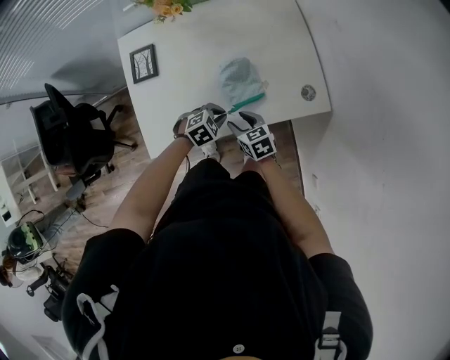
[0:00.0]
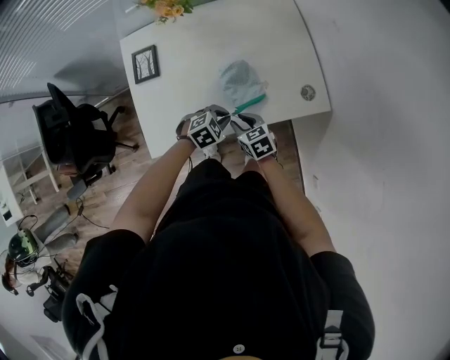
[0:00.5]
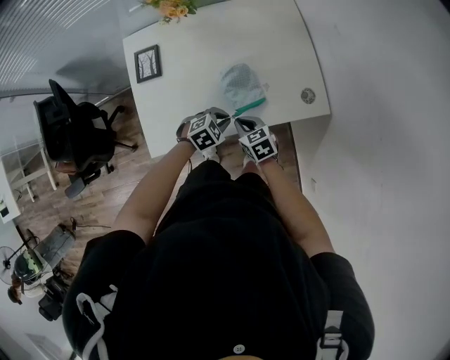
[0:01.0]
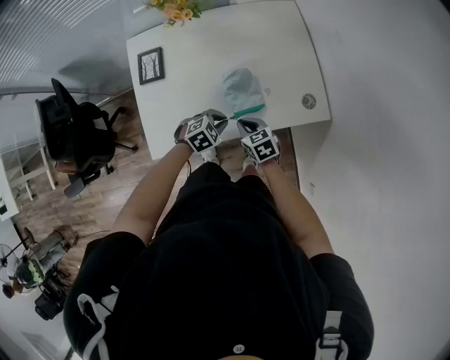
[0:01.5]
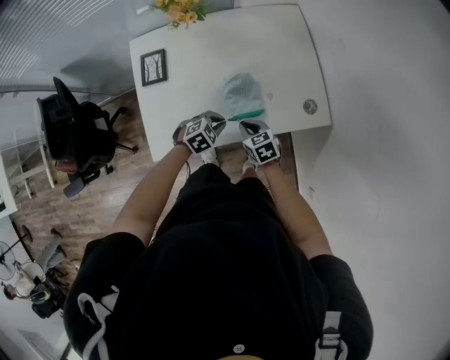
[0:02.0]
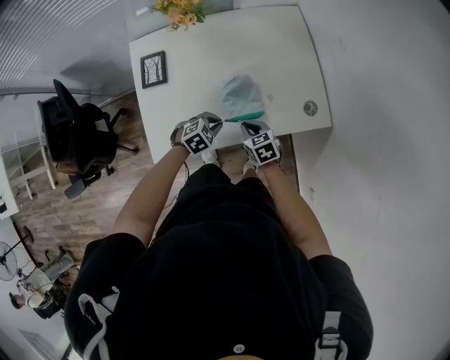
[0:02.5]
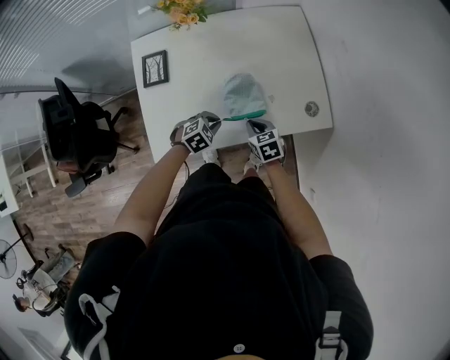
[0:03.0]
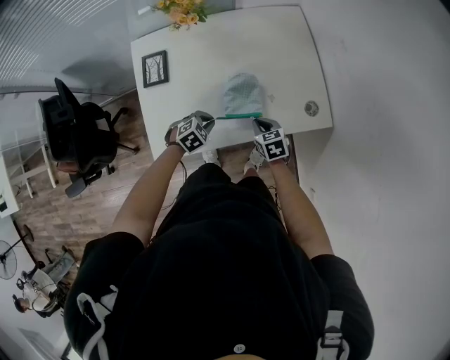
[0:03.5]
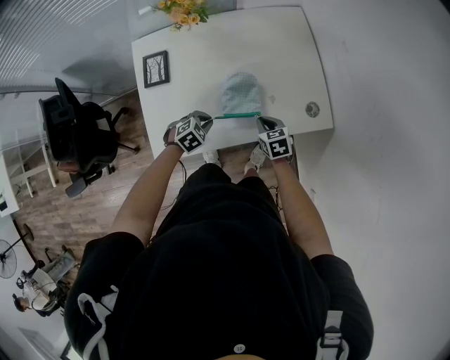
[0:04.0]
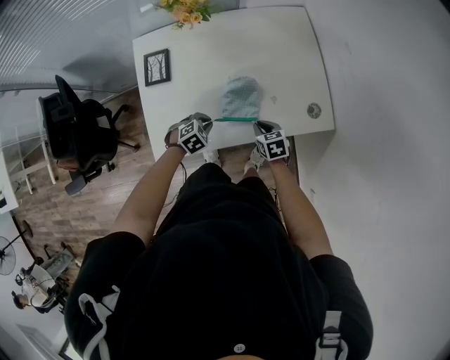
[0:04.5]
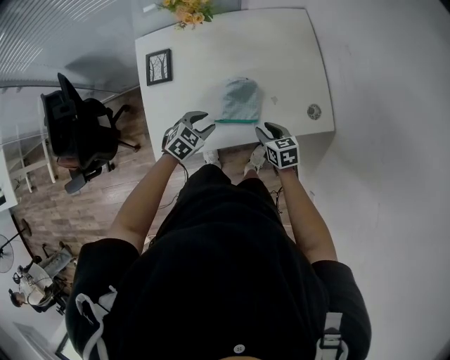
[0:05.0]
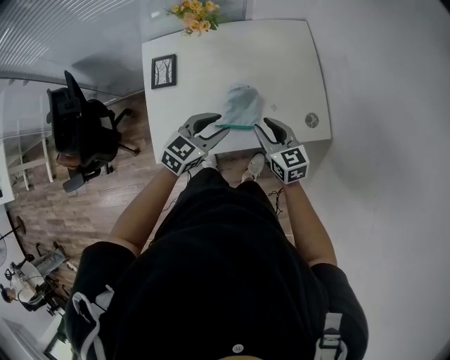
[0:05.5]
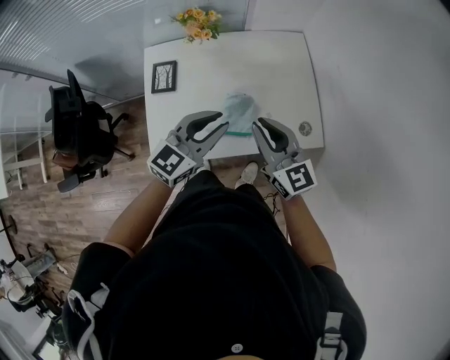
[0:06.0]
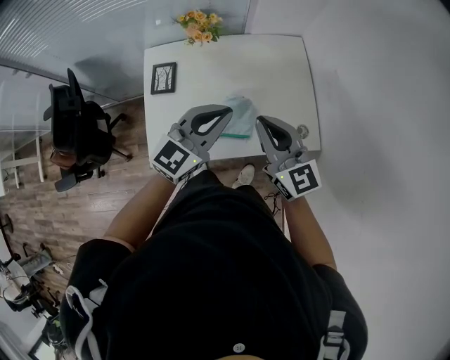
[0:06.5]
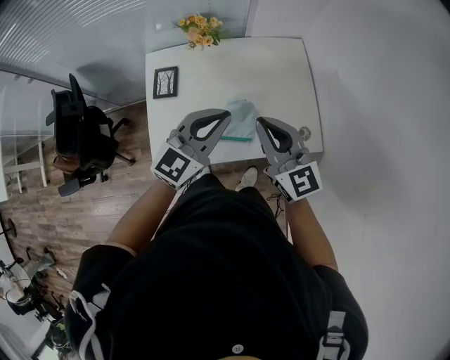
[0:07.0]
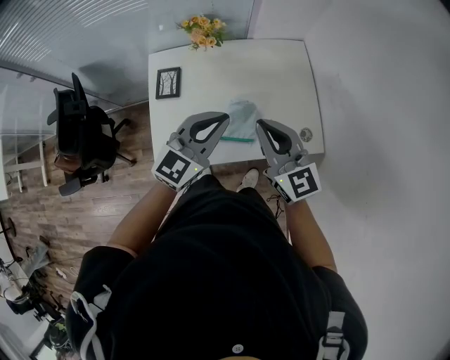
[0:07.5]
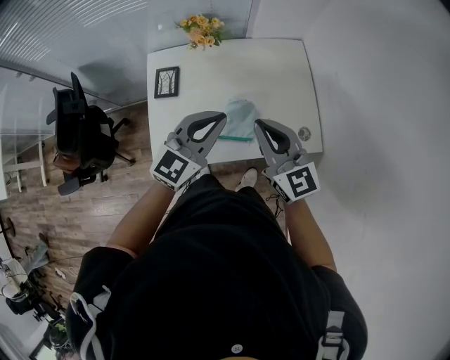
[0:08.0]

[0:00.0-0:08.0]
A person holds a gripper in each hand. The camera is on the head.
0:00.0 to 0:02.0: The right gripper closes.
0:02.0 to 0:04.0: The left gripper shifts about 5 cm to the left. The right gripper is displaced to the right by some 5 cm.
0:04.0 to 0:06.0: The two grippers go roughly 30 cm upward. The left gripper angles its fingers upward, by roughly 50 degrees. Meanwhile the right gripper angles its fingers upward, by some 50 degrees.
0:06.0 to 0:08.0: The grippers move only a little.

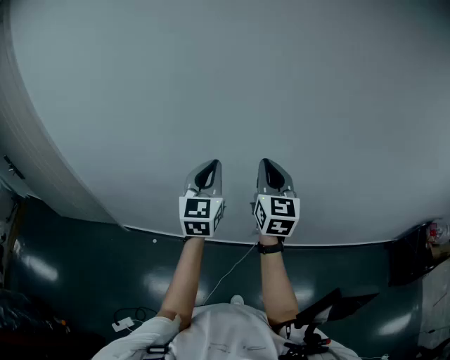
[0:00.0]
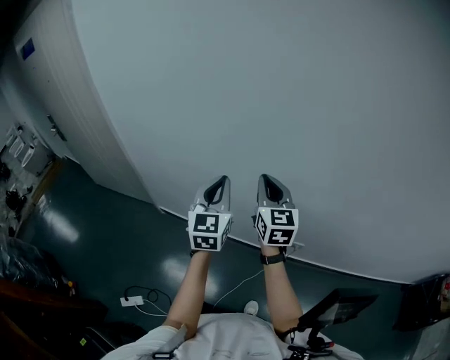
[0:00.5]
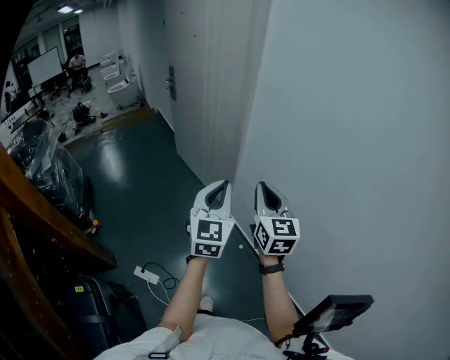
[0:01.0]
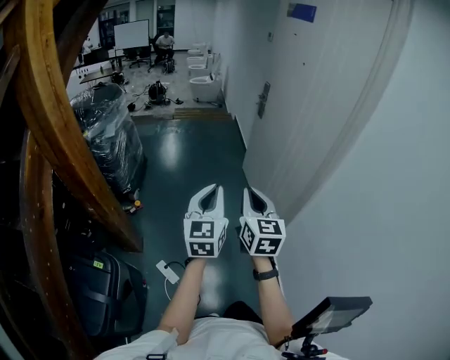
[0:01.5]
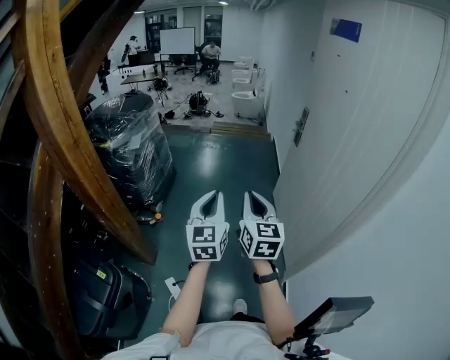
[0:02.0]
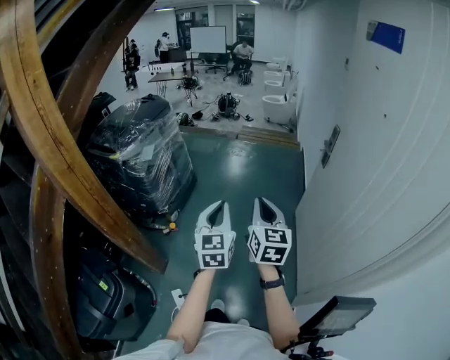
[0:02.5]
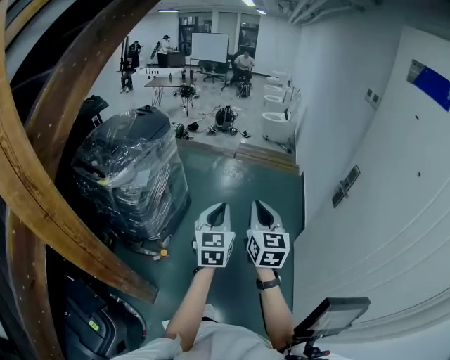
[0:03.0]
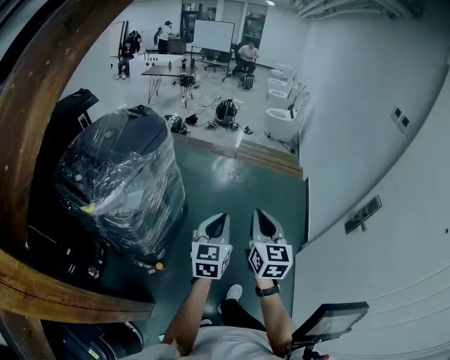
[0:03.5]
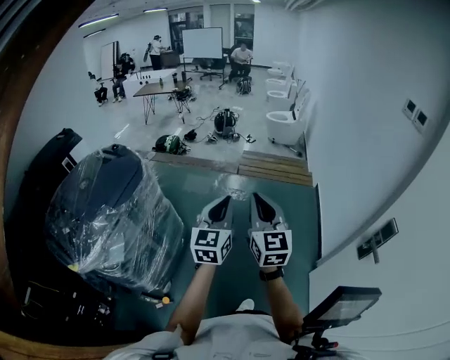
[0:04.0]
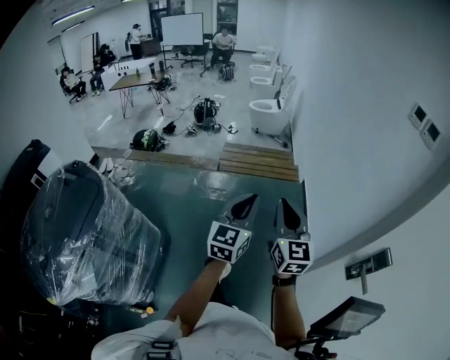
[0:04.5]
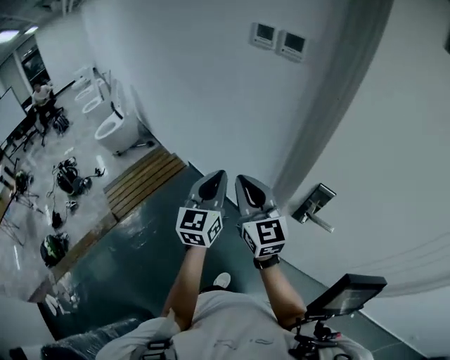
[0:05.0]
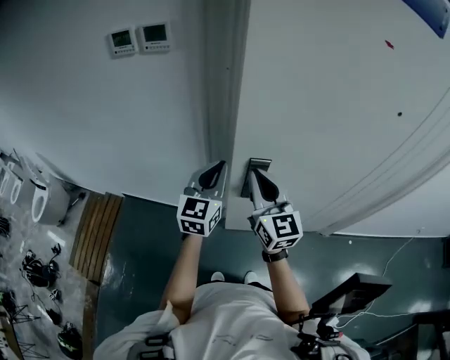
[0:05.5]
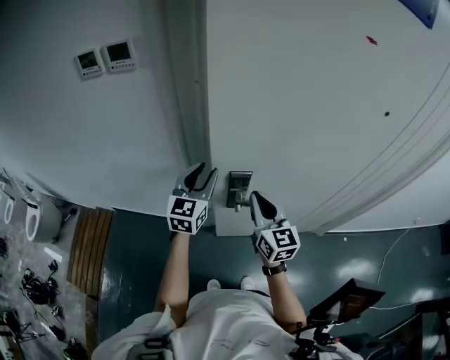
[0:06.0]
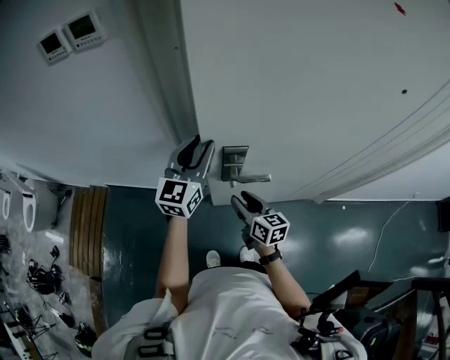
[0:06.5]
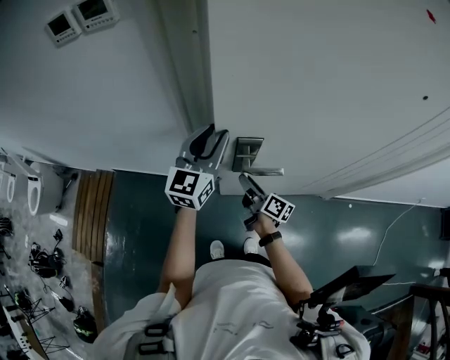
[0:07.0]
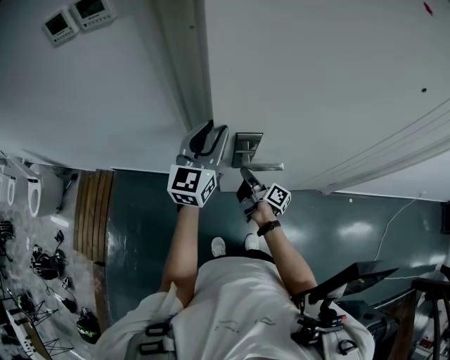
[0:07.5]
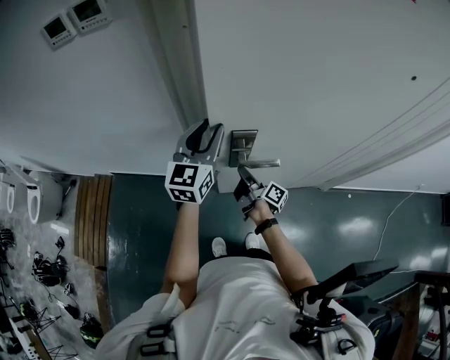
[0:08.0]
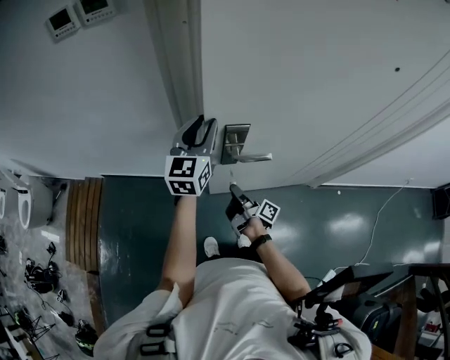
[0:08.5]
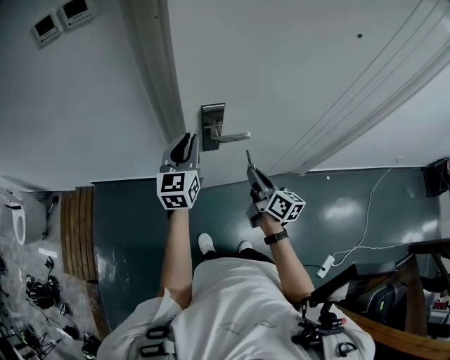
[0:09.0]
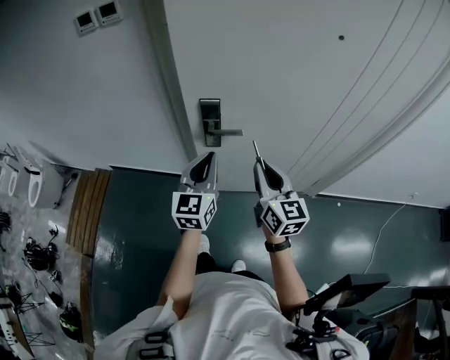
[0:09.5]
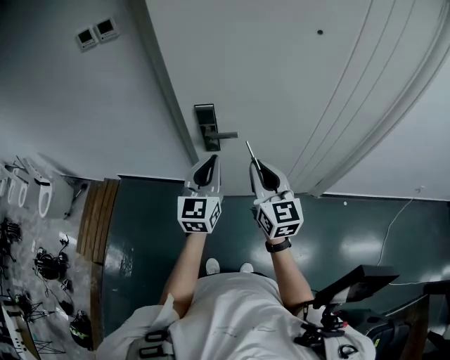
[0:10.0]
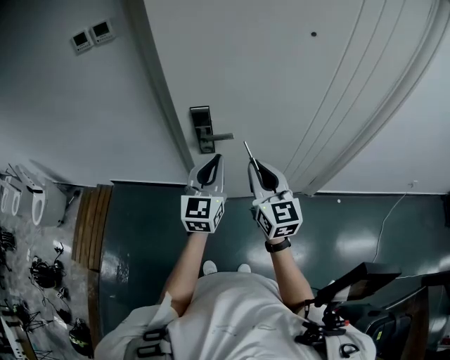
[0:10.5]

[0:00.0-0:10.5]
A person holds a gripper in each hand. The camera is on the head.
0:00.0 to 0:02.0: The pair of grippers is taken roughly 1 m. The right gripper changes its angle by some 90 degrees. Meanwhile the left gripper rotates some 90 degrees.
0:02.0 to 0:04.0: The two grippers travel together, forward, about 70 cm.
0:04.0 to 0:06.5: The pair of grippers is taken approximately 60 cm. The right gripper rotates roughly 90 degrees, and opens; the left gripper turns by approximately 100 degrees, and opens up.
0:06.5 to 0:08.5: The right gripper moves downward, some 10 cm, rotates around the line of its fingers by about 60 degrees, clockwise from behind, and closes up.
0:08.5 to 0:10.5: The left gripper is displaced backward and to the right by approximately 25 cm, and closes its fingers, while the right gripper goes roughly 30 cm upward and to the right, and rolls counterclockwise, seen from behind, by some 90 degrees.

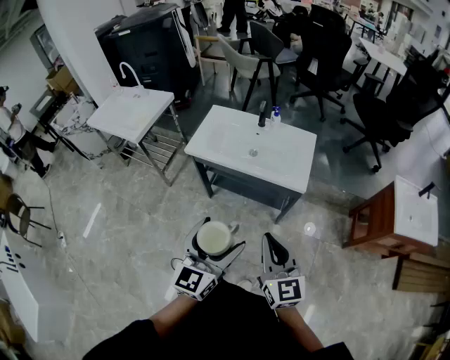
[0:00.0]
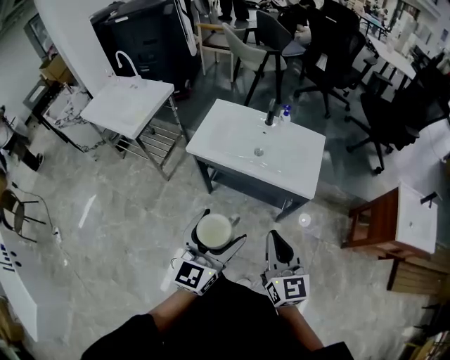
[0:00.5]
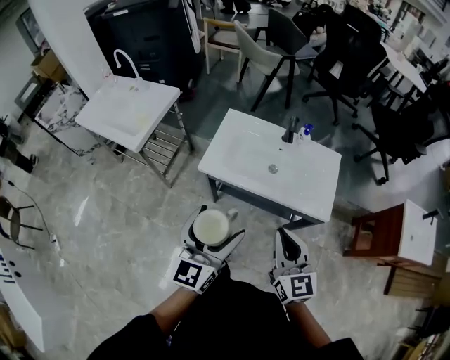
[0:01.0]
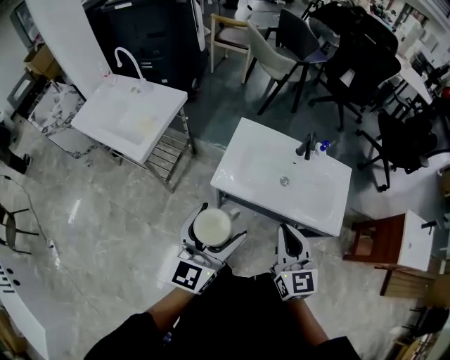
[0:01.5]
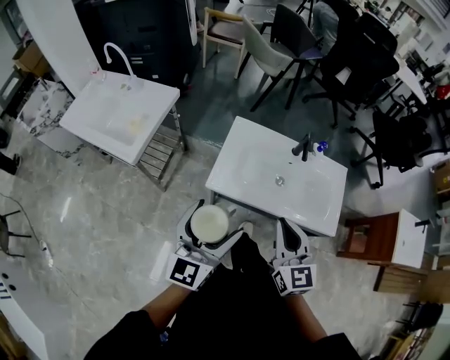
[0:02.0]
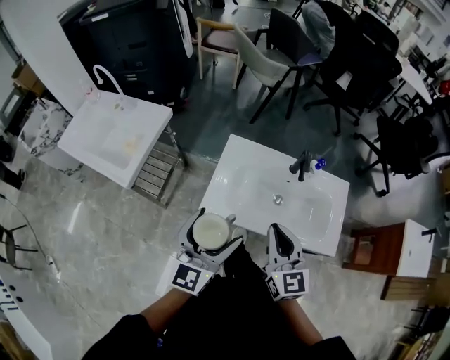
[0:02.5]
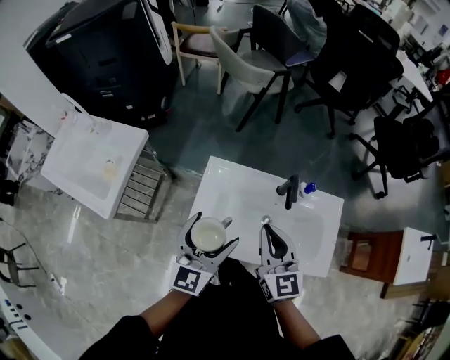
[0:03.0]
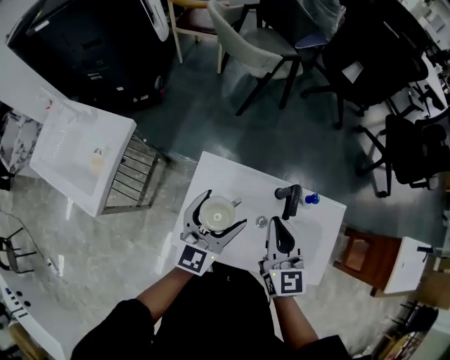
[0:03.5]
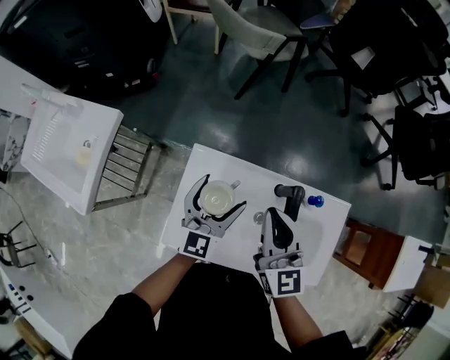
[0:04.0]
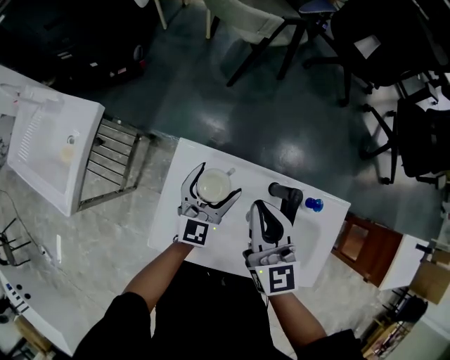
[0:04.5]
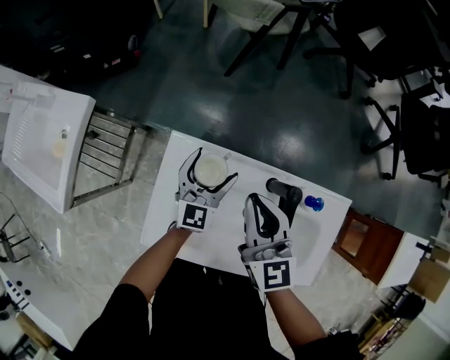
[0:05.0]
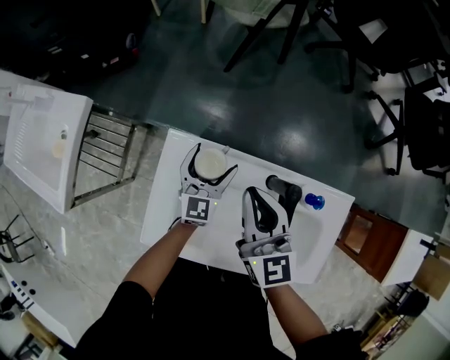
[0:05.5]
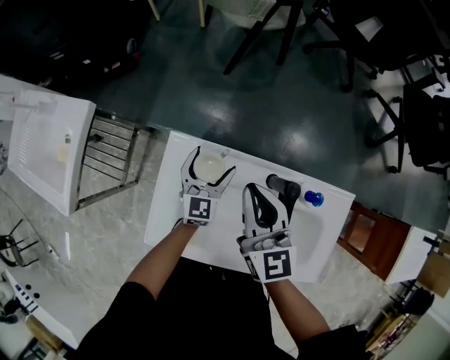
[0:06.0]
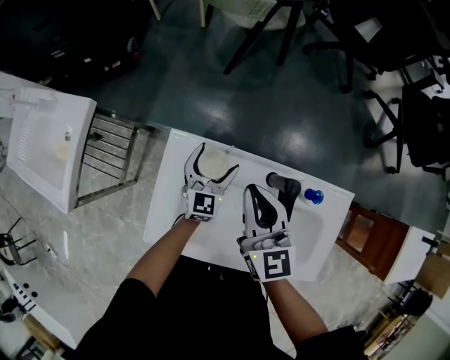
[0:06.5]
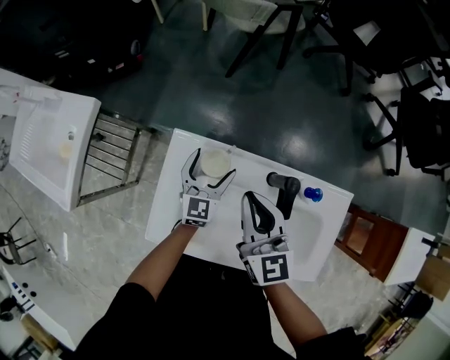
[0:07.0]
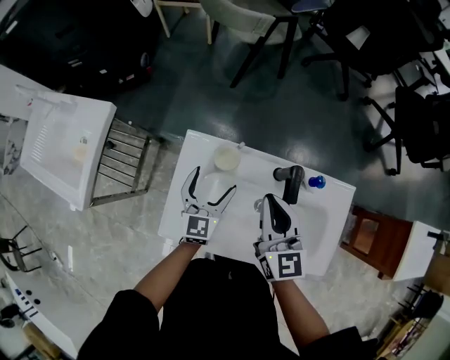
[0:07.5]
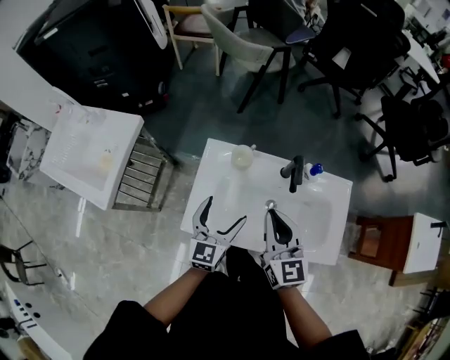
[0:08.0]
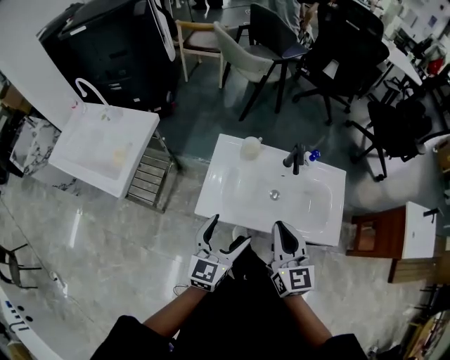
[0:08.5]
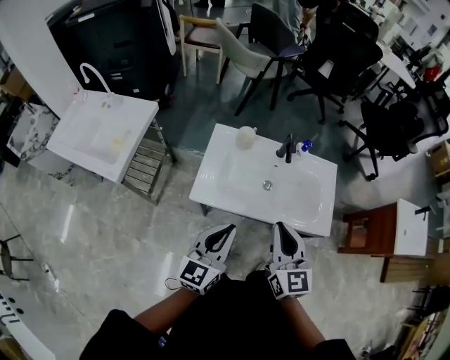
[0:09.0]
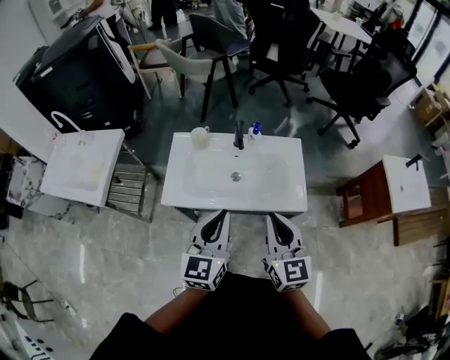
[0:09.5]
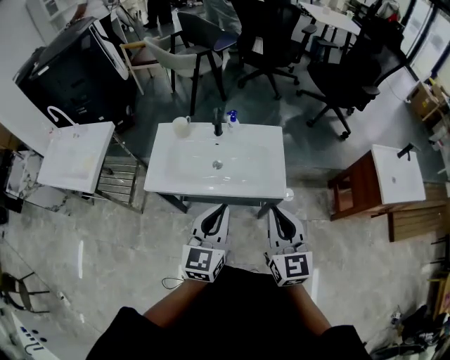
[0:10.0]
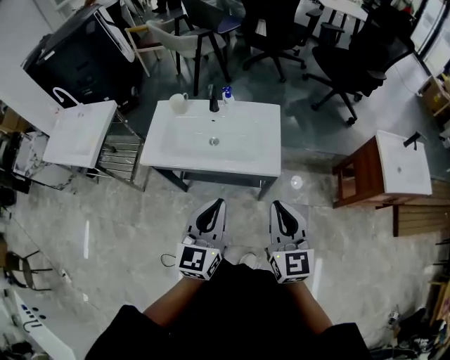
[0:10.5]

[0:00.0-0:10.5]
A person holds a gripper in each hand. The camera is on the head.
0:00.0 to 0:02.0: The pair of grippers is taken forward and to the left, some 40 cm.
0:02.0 to 0:04.0: The left gripper shifts approximately 50 cm forward and downward. The right gripper heads forward, covering about 35 cm.
0:04.0 to 0:06.5: The left gripper travels downward by approximately 20 cm. The right gripper travels downward by approximately 10 cm.
0:06.5 to 0:08.5: The right gripper moves backward, approximately 35 cm. Meanwhile the left gripper is displaced backward and upward by roughly 50 cm.
0:08.5 to 0:10.5: The grippers both shift to the right and backward by roughly 40 cm. The left gripper closes up.
